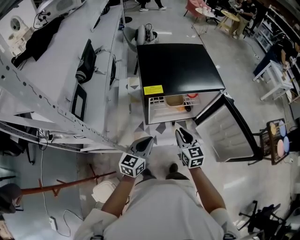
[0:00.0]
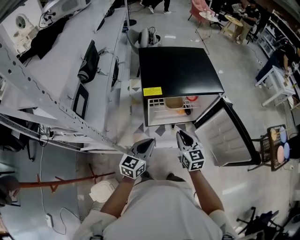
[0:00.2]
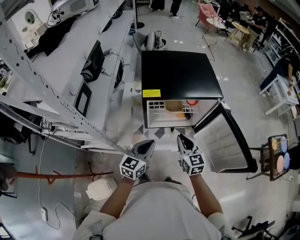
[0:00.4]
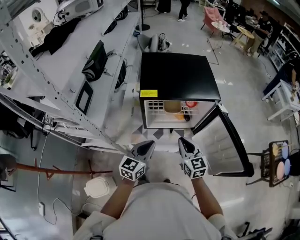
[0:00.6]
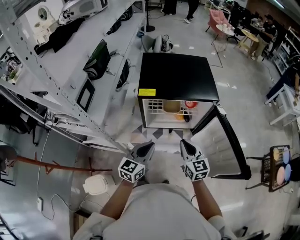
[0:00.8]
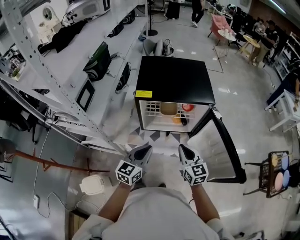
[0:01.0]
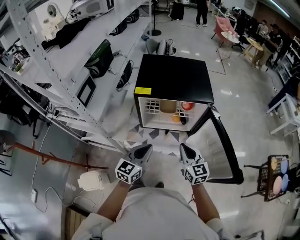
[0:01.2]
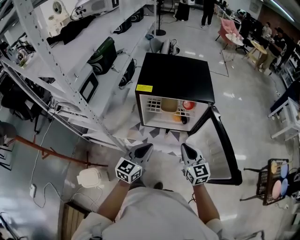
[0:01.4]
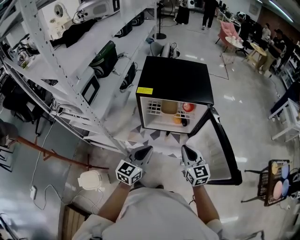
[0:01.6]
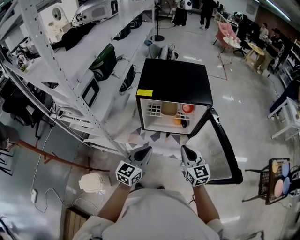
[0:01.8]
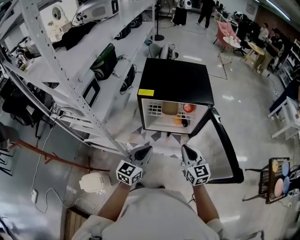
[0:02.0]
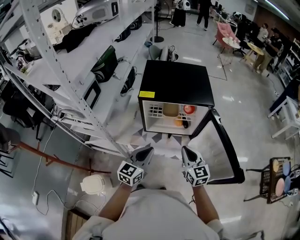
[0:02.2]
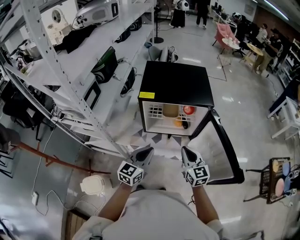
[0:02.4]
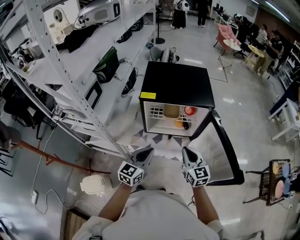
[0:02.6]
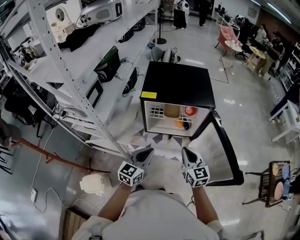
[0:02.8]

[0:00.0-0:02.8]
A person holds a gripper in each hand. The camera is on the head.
0:00.0 to 0:01.4: The two grippers go approximately 15 cm to the right, backward and upward.
0:01.4 to 0:02.8: The grippers make only small movements.

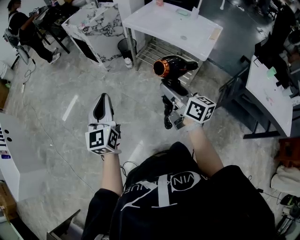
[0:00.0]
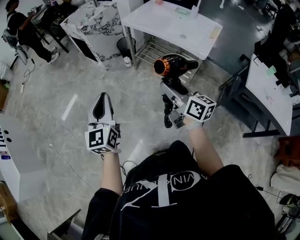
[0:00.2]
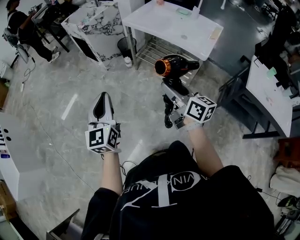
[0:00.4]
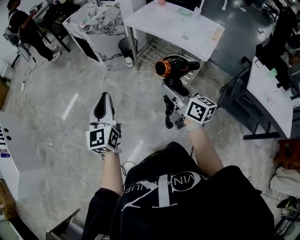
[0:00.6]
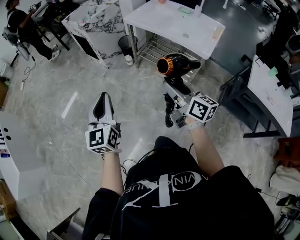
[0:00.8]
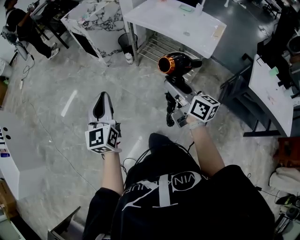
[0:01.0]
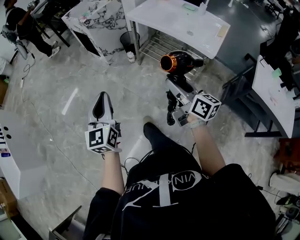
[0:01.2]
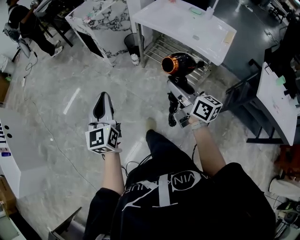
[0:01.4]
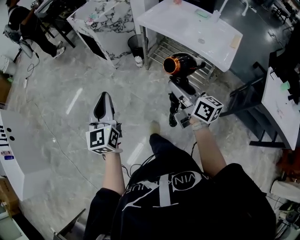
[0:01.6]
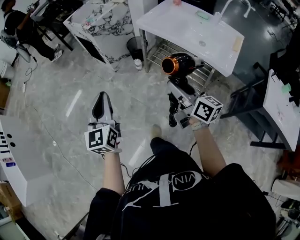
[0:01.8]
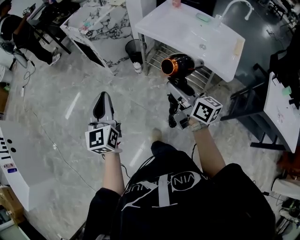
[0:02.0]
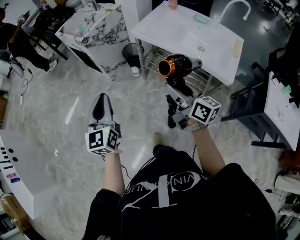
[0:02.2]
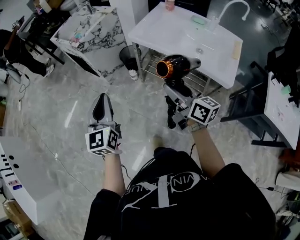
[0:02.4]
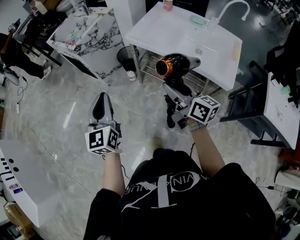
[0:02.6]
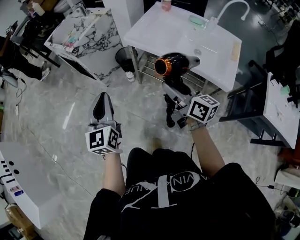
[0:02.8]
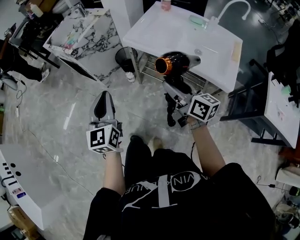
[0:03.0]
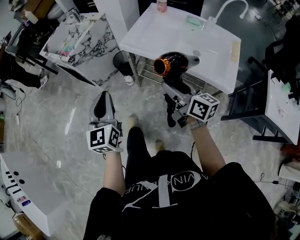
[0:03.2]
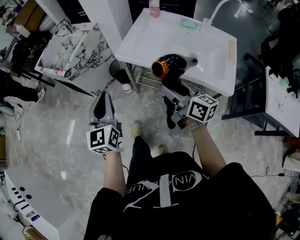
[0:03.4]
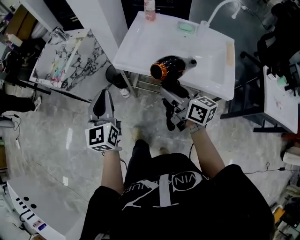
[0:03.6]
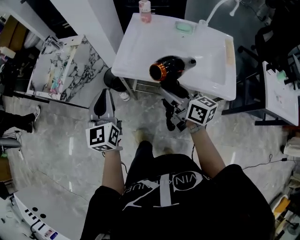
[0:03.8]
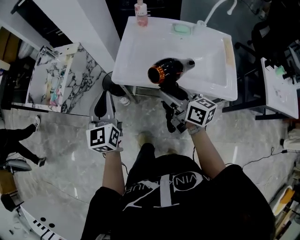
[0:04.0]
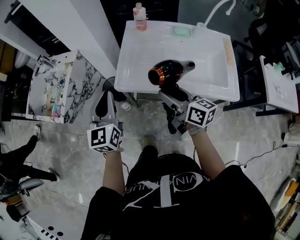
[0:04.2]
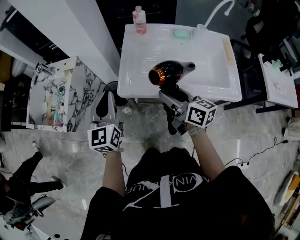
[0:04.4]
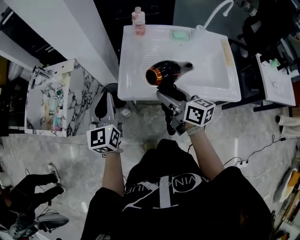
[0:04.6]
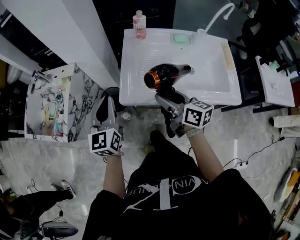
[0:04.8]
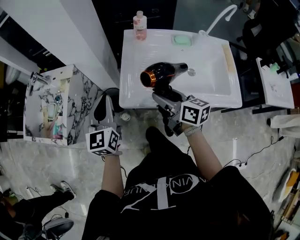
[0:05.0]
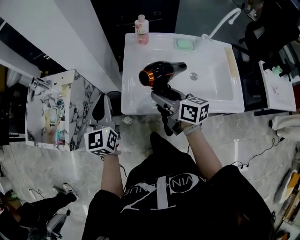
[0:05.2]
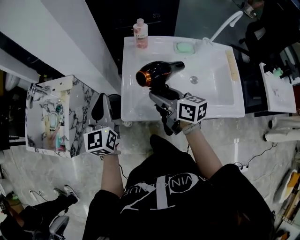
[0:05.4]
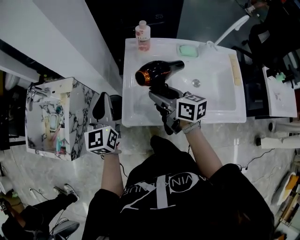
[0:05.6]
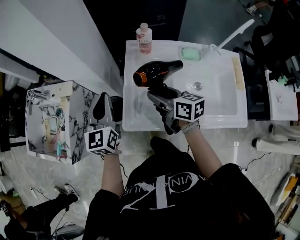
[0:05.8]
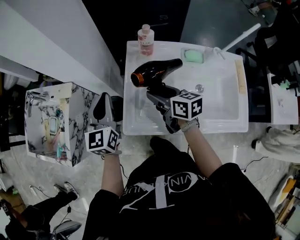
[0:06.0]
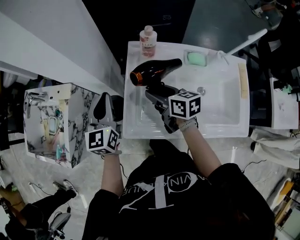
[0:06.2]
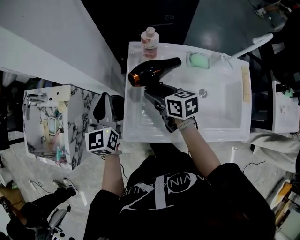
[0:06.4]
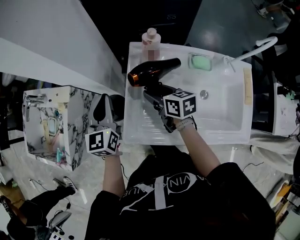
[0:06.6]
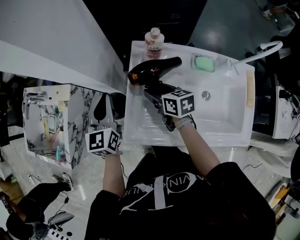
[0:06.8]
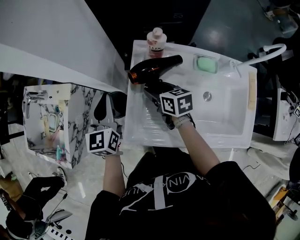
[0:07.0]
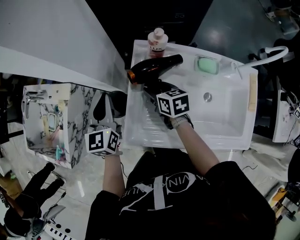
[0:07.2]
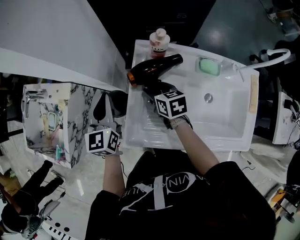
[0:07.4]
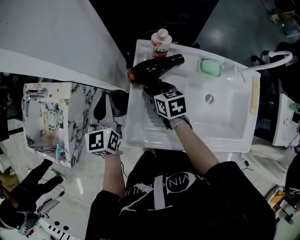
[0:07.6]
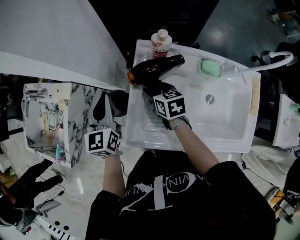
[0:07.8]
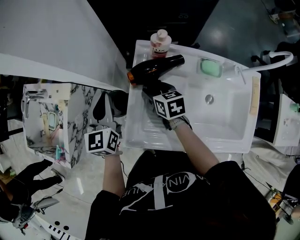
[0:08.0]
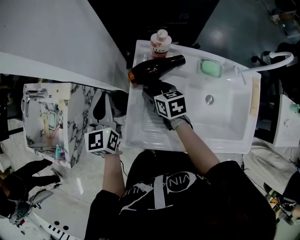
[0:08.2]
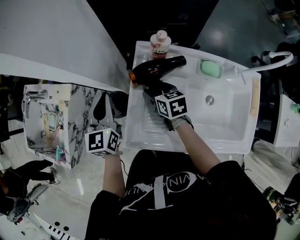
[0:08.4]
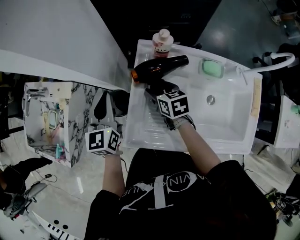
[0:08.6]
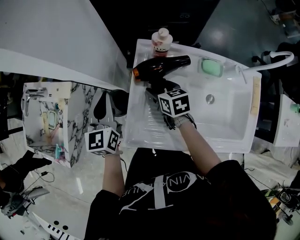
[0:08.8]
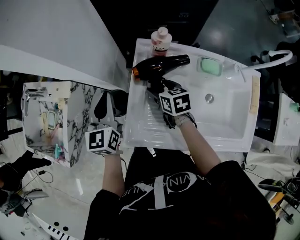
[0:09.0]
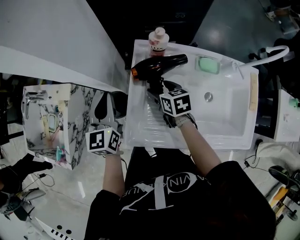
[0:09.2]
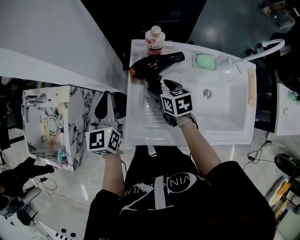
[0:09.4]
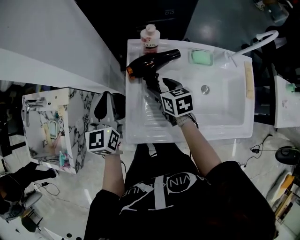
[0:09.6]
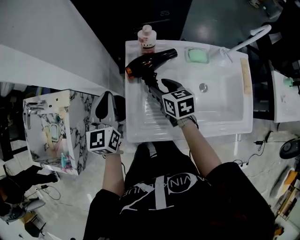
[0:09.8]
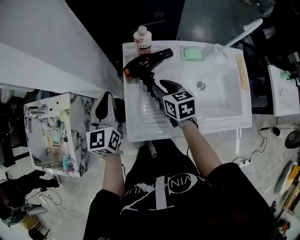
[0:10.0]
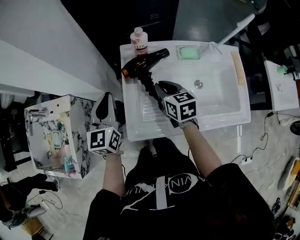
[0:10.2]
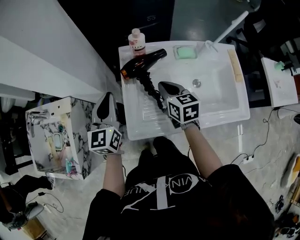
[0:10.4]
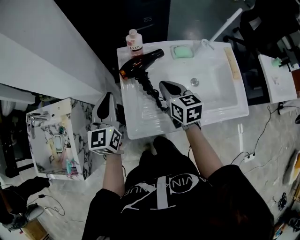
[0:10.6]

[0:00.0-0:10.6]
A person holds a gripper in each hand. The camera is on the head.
0:00.0 to 0:01.6: The left gripper travels forward and to the left by approximately 15 cm. The right gripper is displaced forward by roughly 15 cm.
0:01.6 to 0:03.0: The grippers both shift forward by some 25 cm.
0:03.0 to 0:04.6: The grippers both shift forward by roughly 30 cm. The left gripper changes its angle by about 30 degrees. The right gripper changes its angle by roughly 20 degrees.
0:04.6 to 0:06.0: The grippers both shift forward by roughly 20 cm.
0:06.0 to 0:07.6: The right gripper moves forward and downward, about 15 cm; the left gripper travels forward by approximately 5 cm.
0:07.6 to 0:09.0: There are only small adjustments of the grippers.
0:09.0 to 0:10.6: The left gripper shifts approximately 10 cm upward and backward. Meanwhile the right gripper goes about 15 cm upward, backward and to the right, swivels some 30 degrees, and closes its fingers.

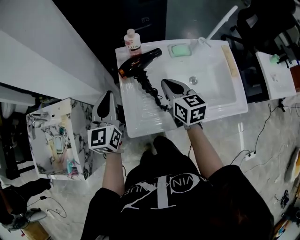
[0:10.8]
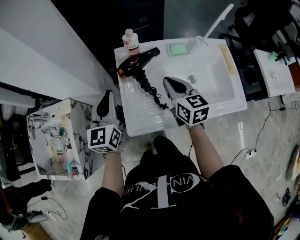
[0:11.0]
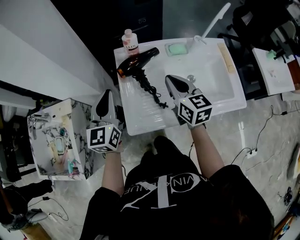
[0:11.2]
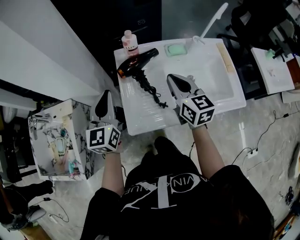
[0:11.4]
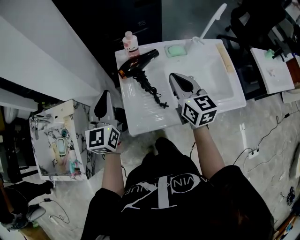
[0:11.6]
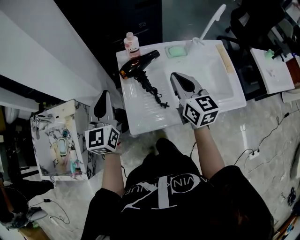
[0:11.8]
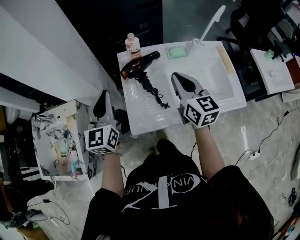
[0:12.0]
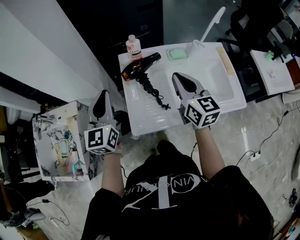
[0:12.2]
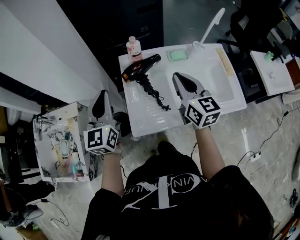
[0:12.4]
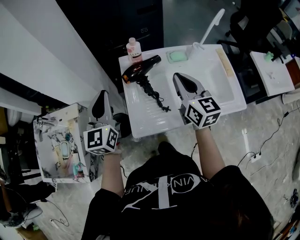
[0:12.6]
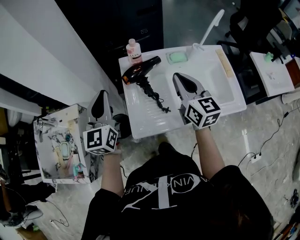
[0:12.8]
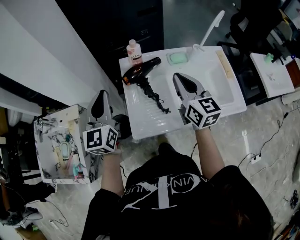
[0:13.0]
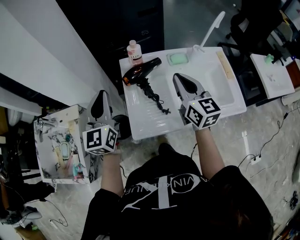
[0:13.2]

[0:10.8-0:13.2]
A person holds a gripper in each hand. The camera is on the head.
0:10.8 to 0:12.0: The right gripper moves upward, some 10 cm. Meanwhile the left gripper moves roughly 5 cm.
0:12.0 to 0:13.2: The grippers stay close to where they were, moving slightly.

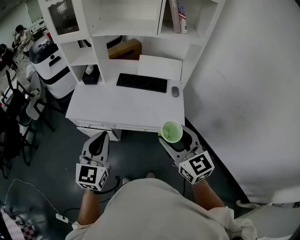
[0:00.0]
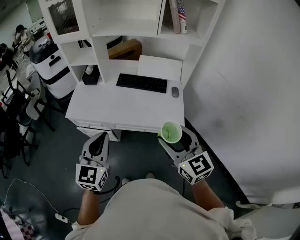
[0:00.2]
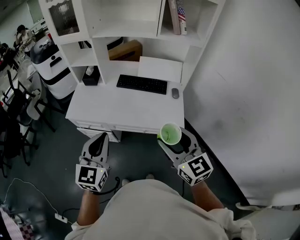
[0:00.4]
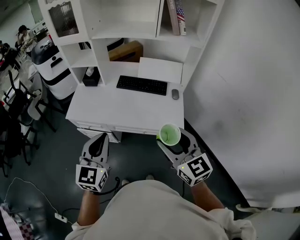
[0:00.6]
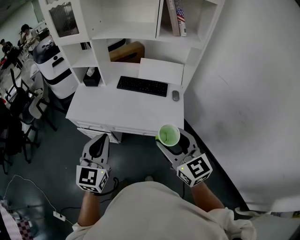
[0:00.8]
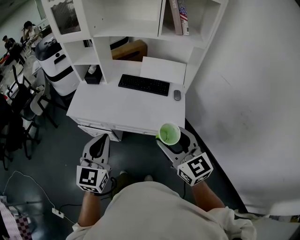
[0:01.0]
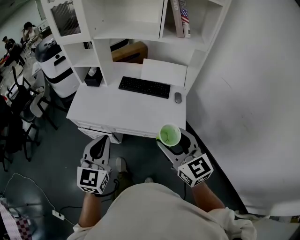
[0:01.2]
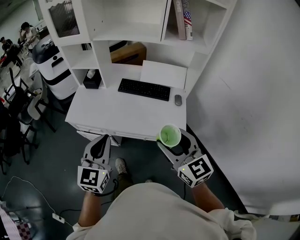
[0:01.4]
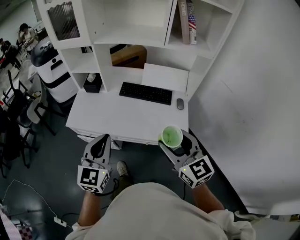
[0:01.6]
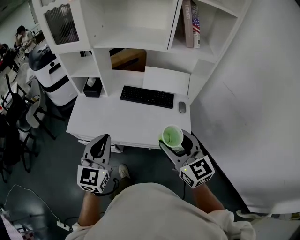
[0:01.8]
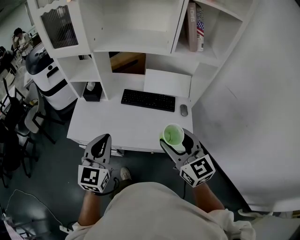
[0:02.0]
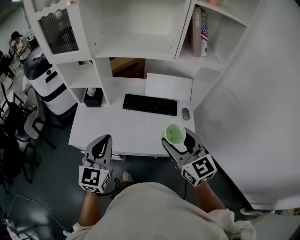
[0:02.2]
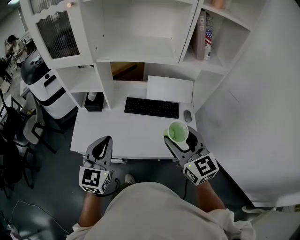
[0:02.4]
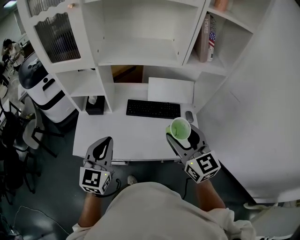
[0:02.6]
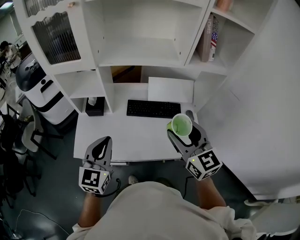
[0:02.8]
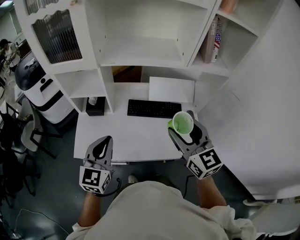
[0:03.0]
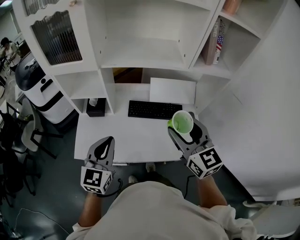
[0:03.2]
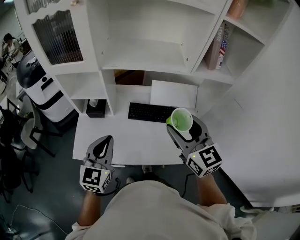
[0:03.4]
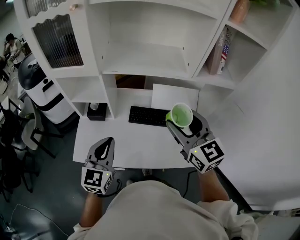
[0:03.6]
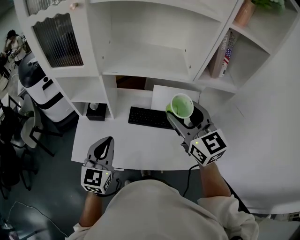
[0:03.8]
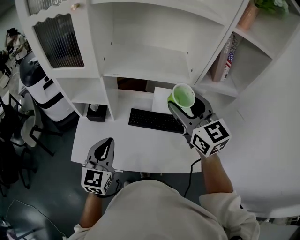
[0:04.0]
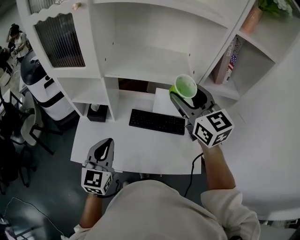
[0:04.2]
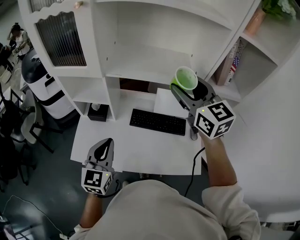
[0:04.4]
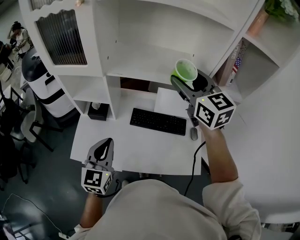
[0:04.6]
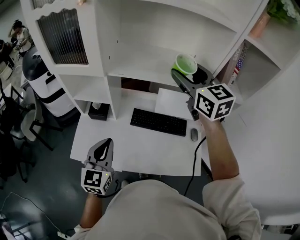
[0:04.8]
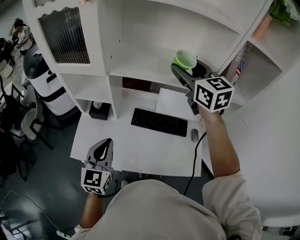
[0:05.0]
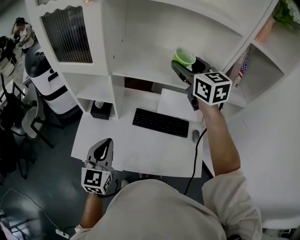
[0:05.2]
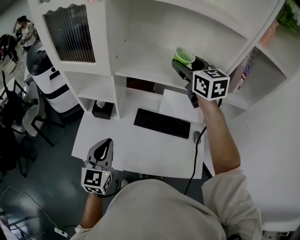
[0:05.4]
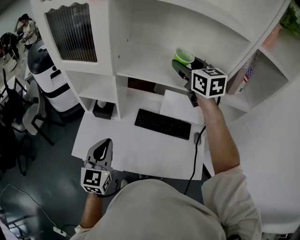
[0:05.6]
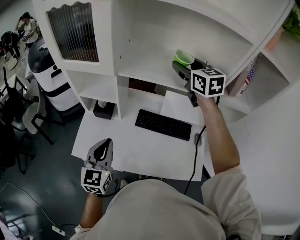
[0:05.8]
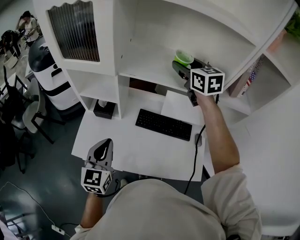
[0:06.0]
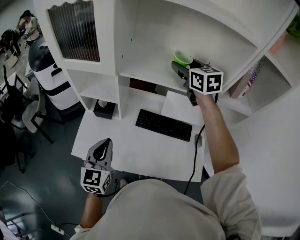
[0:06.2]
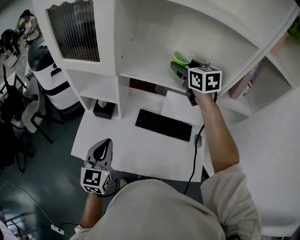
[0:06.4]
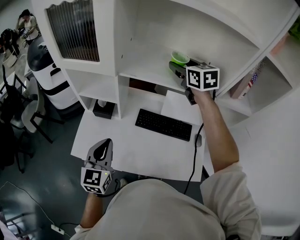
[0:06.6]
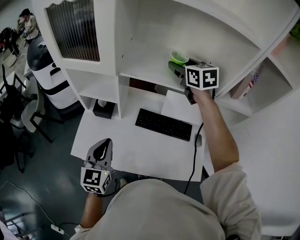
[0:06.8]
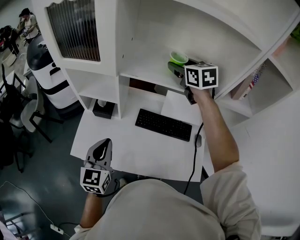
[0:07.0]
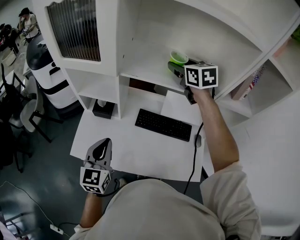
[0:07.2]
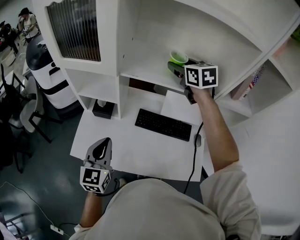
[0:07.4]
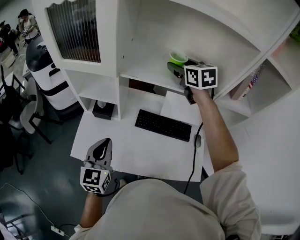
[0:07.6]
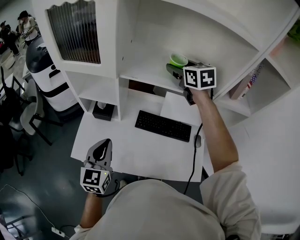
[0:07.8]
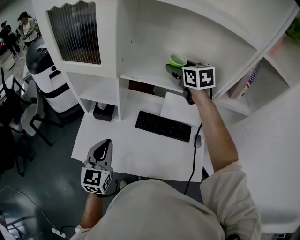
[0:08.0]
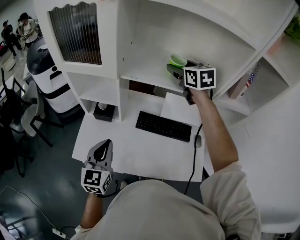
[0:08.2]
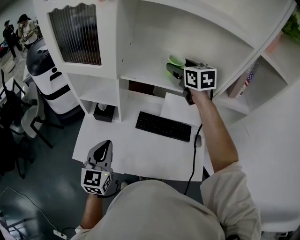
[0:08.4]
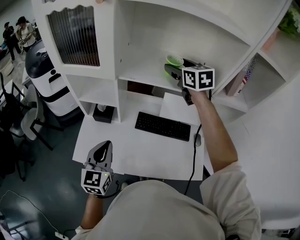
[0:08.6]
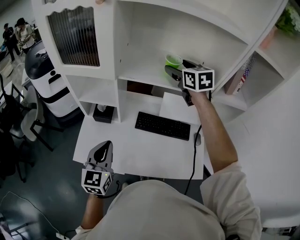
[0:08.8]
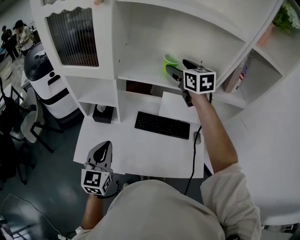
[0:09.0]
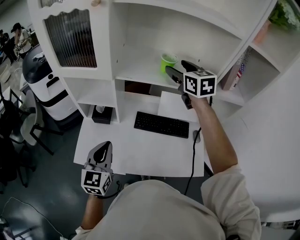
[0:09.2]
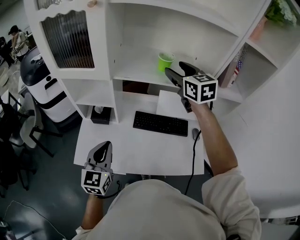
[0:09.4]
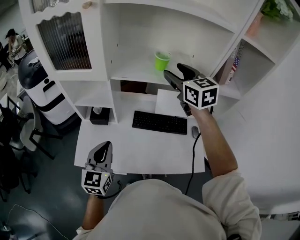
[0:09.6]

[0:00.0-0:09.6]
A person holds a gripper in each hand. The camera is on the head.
0:00.0 to 0:01.6: Both grippers travel together forward, roughly 10 cm.
0:01.6 to 0:03.2: Both grippers move forward and to the left, roughly 25 cm.
0:03.2 to 0:04.8: The right gripper is displaced forward and upward by some 25 cm; the left gripper moves forward, roughly 5 cm.
0:04.8 to 0:06.4: The right gripper travels forward and downward by some 15 cm.
0:06.4 to 0:08.0: There are only small adjustments of the grippers.
0:08.0 to 0:09.6: The right gripper goes some 10 cm backward.
